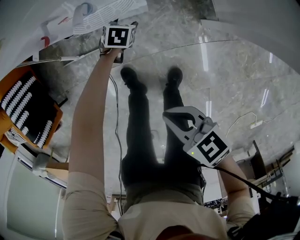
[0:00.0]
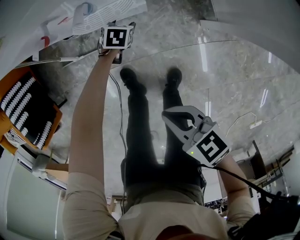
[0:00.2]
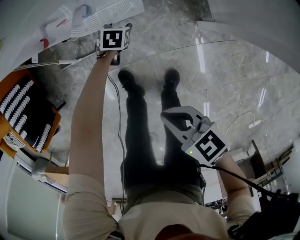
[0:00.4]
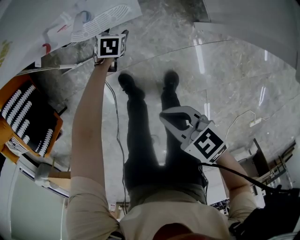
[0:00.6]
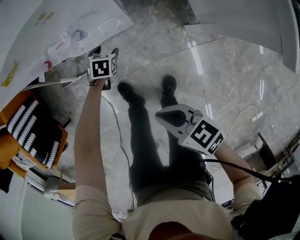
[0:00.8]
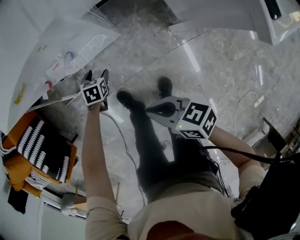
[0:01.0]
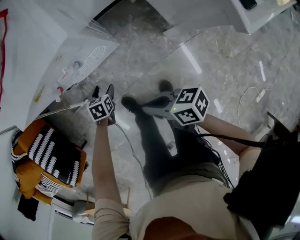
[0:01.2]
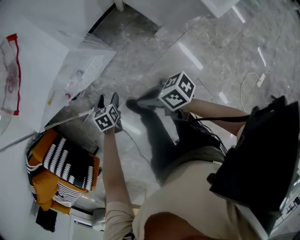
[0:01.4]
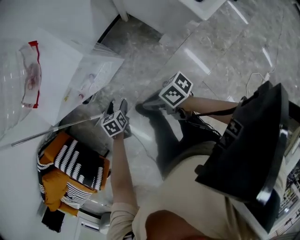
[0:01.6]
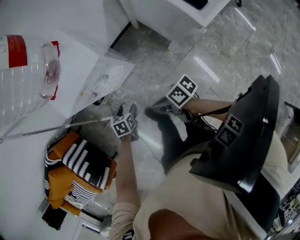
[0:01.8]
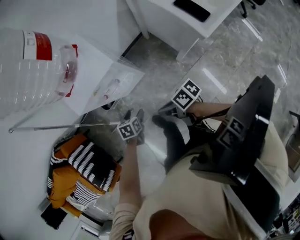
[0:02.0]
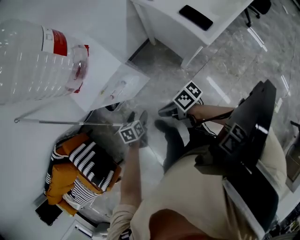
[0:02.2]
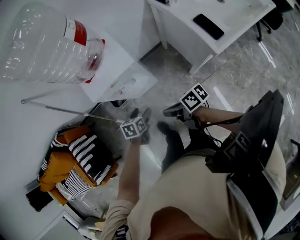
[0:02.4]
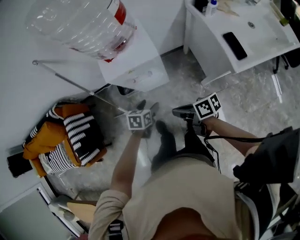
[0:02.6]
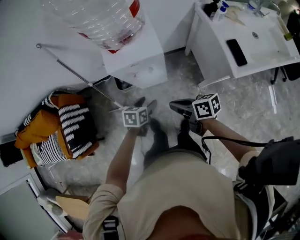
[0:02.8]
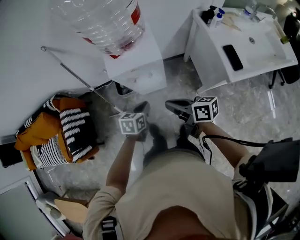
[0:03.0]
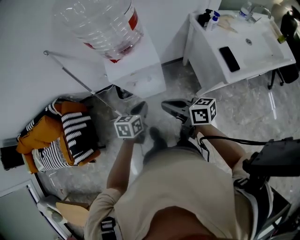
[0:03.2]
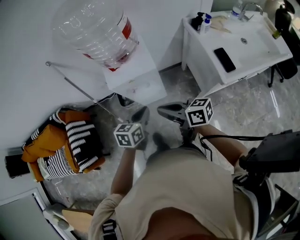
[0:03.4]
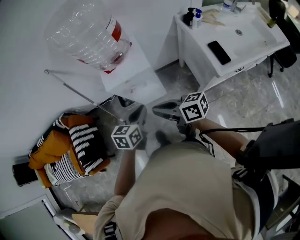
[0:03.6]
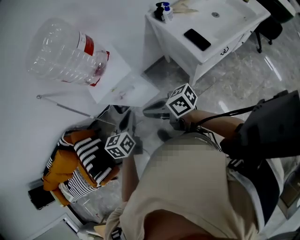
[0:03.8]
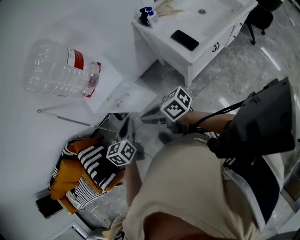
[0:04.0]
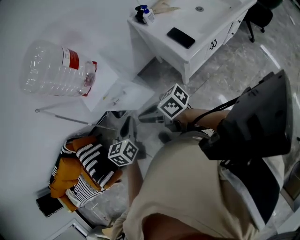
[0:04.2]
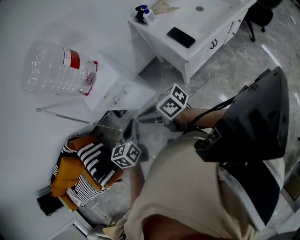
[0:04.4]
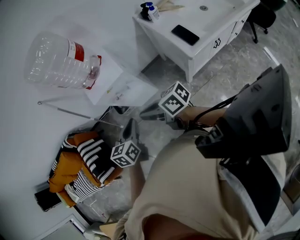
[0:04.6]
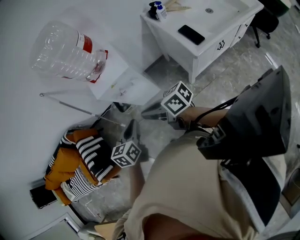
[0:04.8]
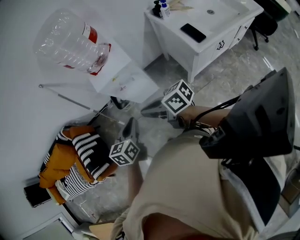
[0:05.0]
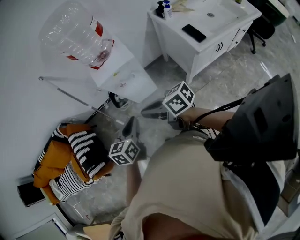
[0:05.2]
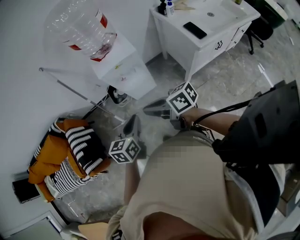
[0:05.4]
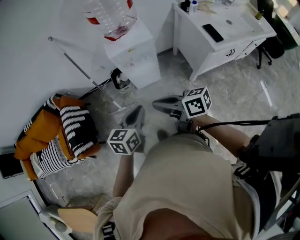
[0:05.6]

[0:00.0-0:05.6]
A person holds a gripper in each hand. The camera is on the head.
0:00.0 to 0:01.4: The left gripper goes some 20 cm upward, backward and to the left; the right gripper travels forward and upward by roughly 10 cm, and changes its angle by about 30 degrees.
0:01.4 to 0:02.8: The two grippers go about 25 cm upward.
0:02.8 to 0:04.2: The right gripper goes approximately 10 cm upward and backward, and turns by about 20 degrees. Meanwhile the left gripper shifts some 20 cm upward, backward and to the right, changes its angle by about 20 degrees, and closes.
0:04.2 to 0:05.6: Both grippers travel together to the left and backward, some 20 cm.

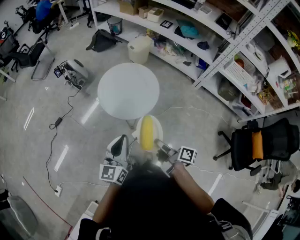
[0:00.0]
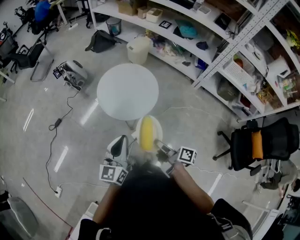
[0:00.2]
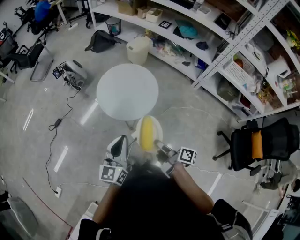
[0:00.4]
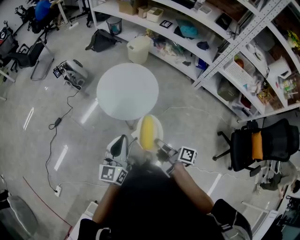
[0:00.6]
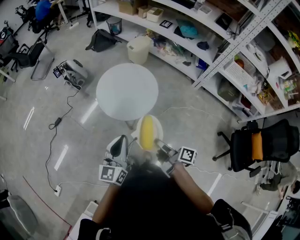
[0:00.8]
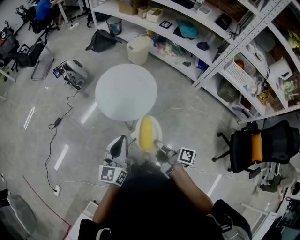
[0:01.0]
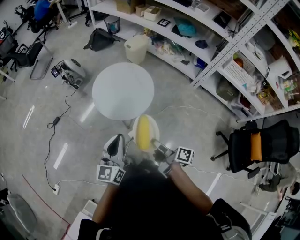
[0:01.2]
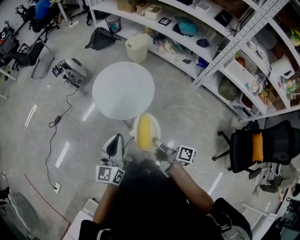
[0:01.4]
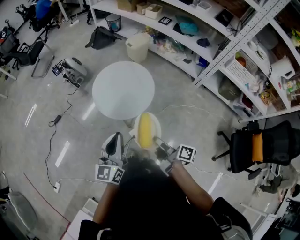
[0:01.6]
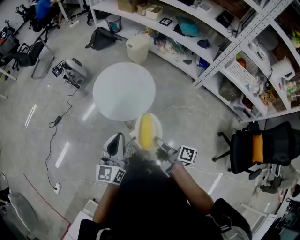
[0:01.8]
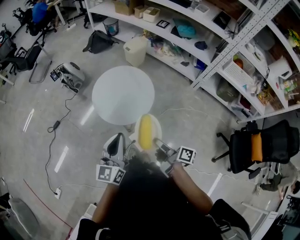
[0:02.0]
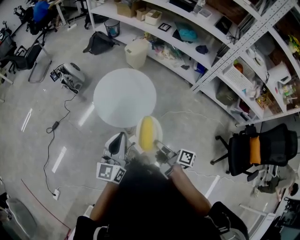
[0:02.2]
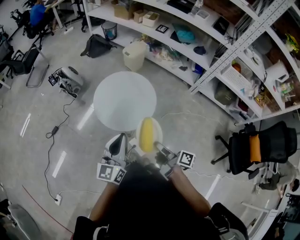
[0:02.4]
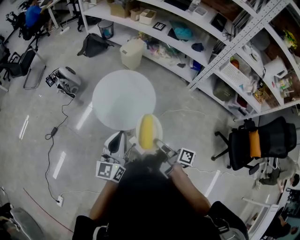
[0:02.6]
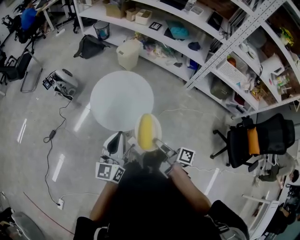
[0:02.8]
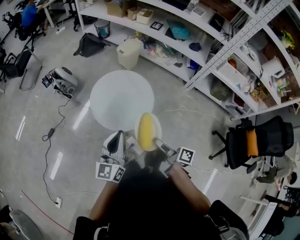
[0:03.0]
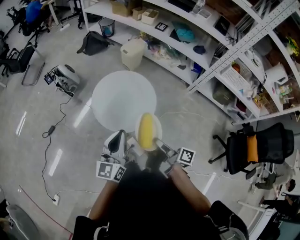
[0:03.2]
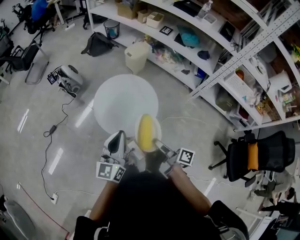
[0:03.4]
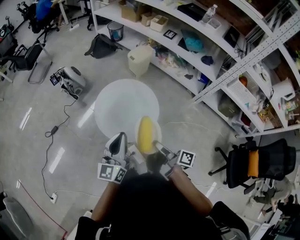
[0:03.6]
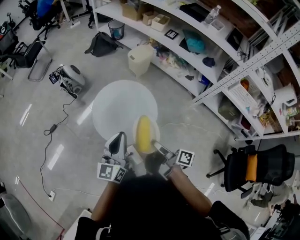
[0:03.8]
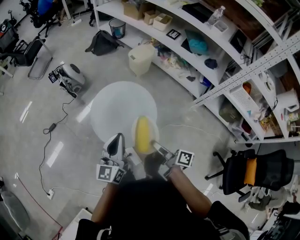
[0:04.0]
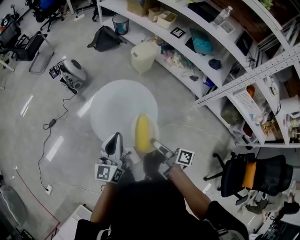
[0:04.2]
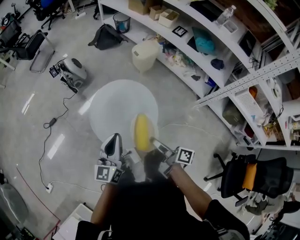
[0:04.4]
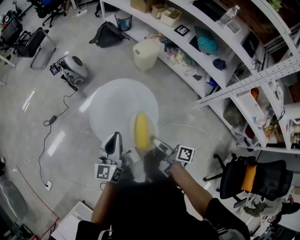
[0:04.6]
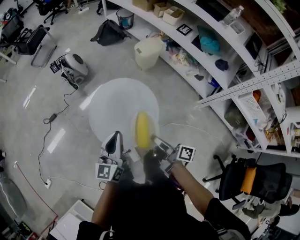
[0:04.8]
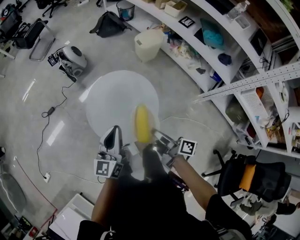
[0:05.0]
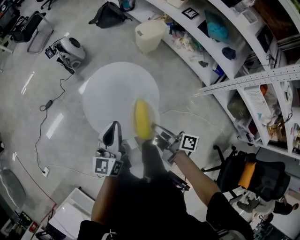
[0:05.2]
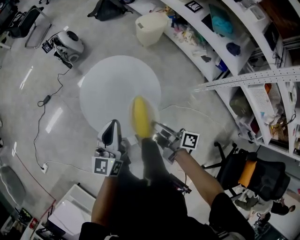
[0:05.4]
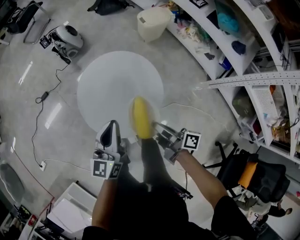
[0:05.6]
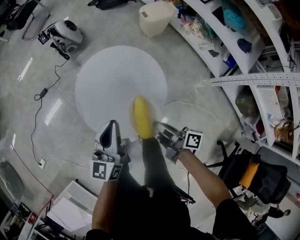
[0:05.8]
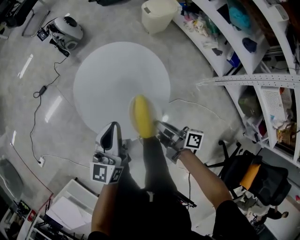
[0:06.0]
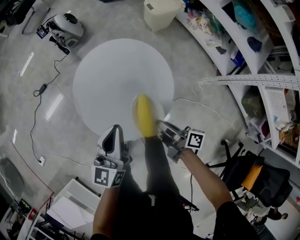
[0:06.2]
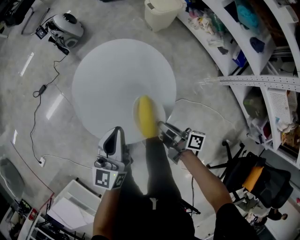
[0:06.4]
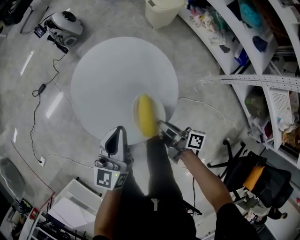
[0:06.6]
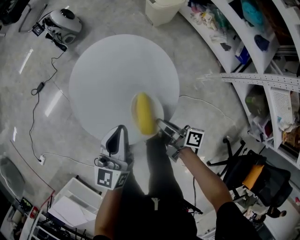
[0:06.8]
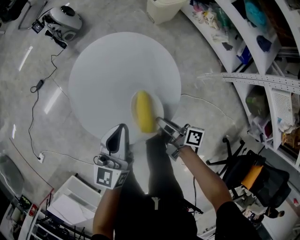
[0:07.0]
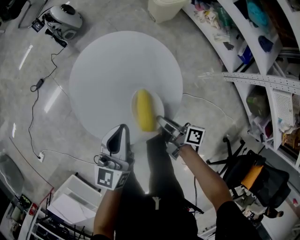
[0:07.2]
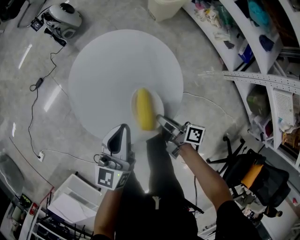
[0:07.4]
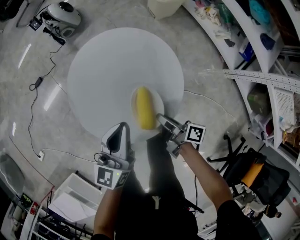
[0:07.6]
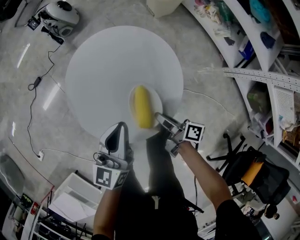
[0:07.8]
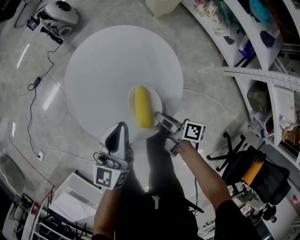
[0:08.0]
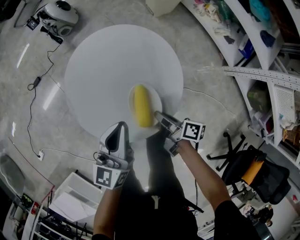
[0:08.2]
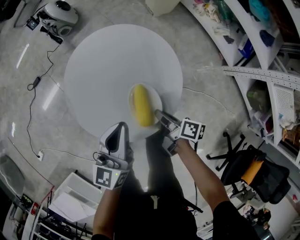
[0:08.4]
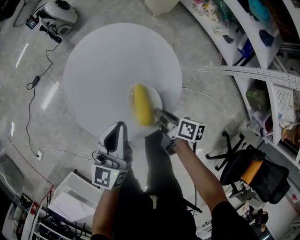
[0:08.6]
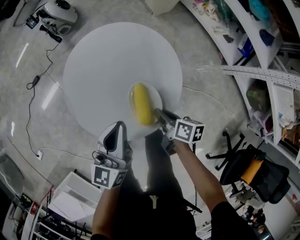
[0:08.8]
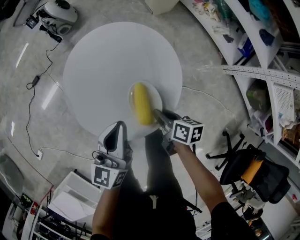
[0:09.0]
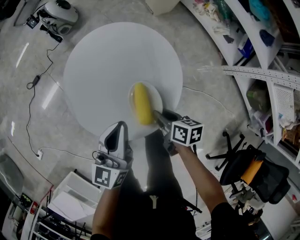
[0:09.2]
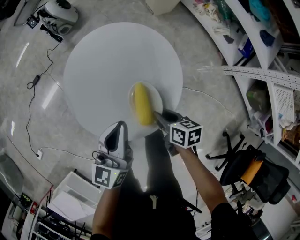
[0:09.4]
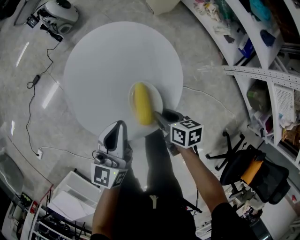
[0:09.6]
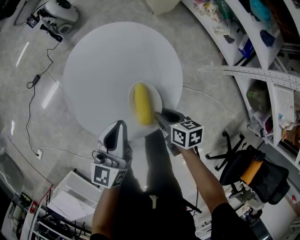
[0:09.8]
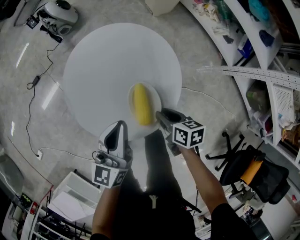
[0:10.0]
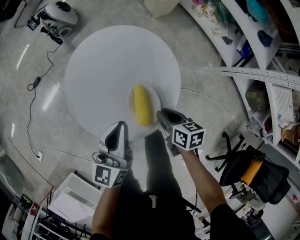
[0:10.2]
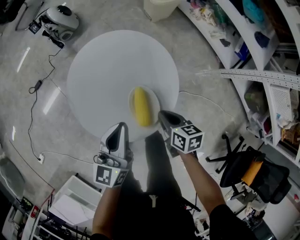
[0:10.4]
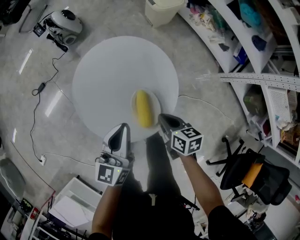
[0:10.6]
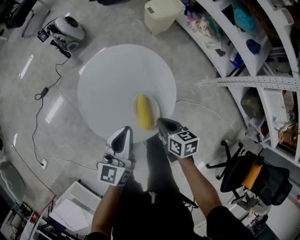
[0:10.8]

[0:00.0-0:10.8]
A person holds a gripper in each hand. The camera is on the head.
0:01.6 to 0:03.0: The left gripper shifts by some 10 cm.
0:03.0 to 0:04.6: The left gripper ends up about 15 cm from where it was.
0:04.6 to 0:06.2: The left gripper heads downward, covering about 15 cm.
0:06.2 to 0:07.8: The left gripper changes place by roughly 5 cm.

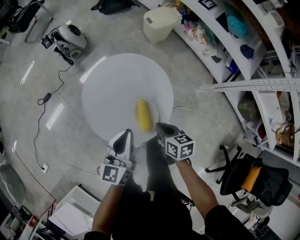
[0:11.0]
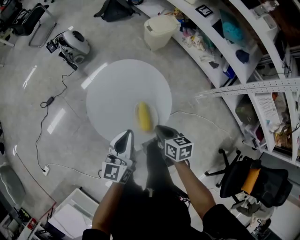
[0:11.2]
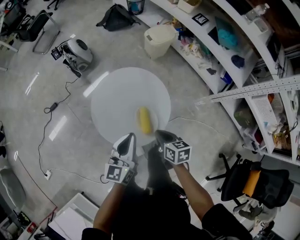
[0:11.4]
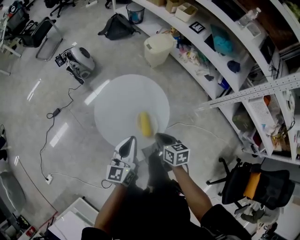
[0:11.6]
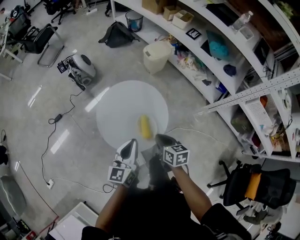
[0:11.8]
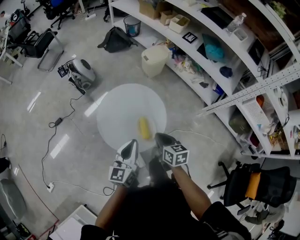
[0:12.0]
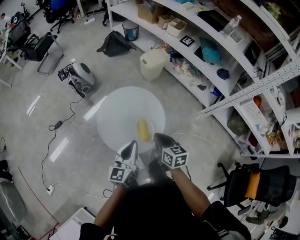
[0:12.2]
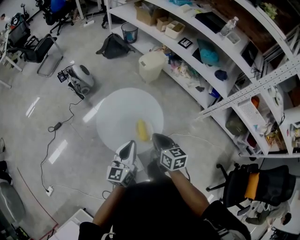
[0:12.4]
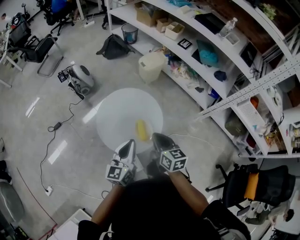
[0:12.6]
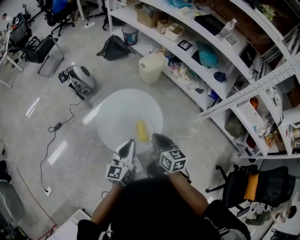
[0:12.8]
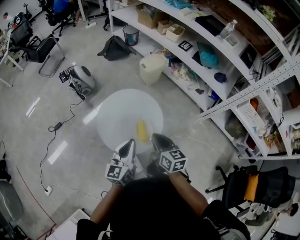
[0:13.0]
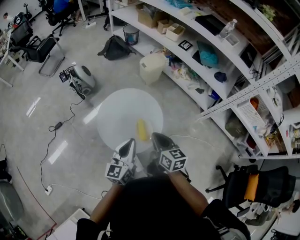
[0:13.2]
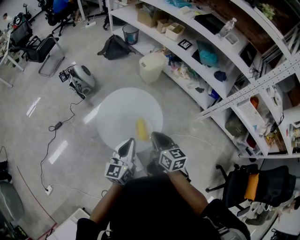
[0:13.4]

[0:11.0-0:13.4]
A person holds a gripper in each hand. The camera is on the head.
0:11.0 to 0:12.2: The left gripper travels upward by some 10 cm.

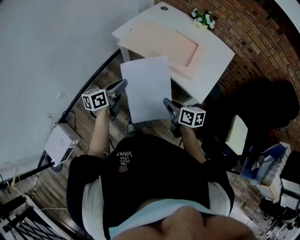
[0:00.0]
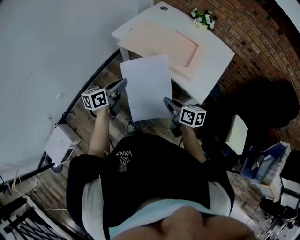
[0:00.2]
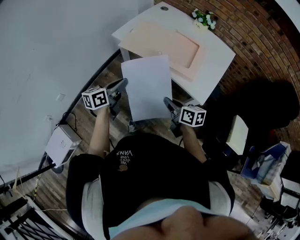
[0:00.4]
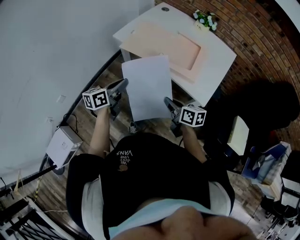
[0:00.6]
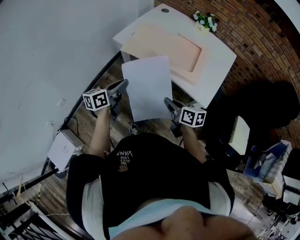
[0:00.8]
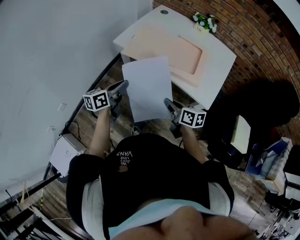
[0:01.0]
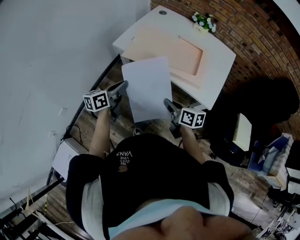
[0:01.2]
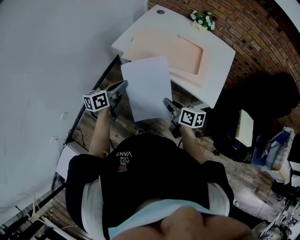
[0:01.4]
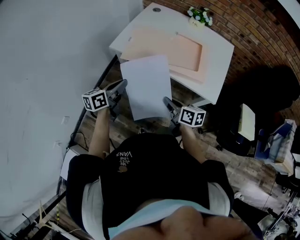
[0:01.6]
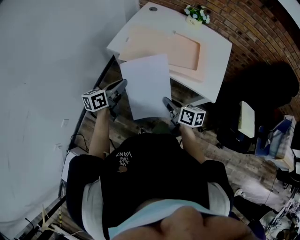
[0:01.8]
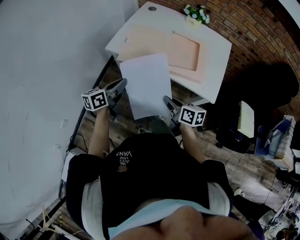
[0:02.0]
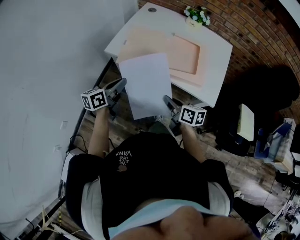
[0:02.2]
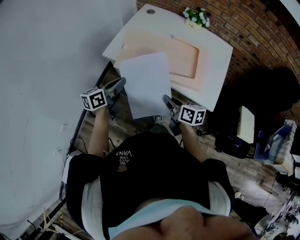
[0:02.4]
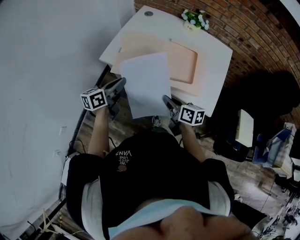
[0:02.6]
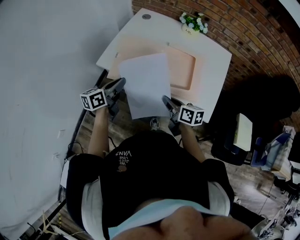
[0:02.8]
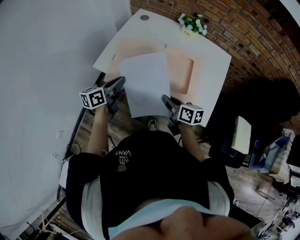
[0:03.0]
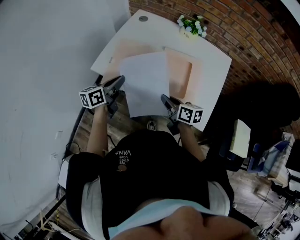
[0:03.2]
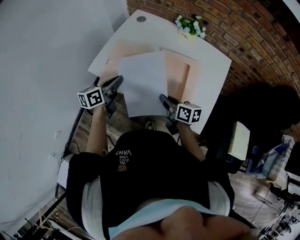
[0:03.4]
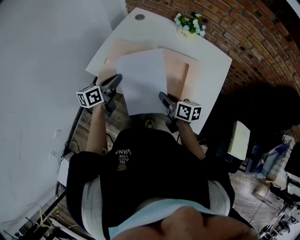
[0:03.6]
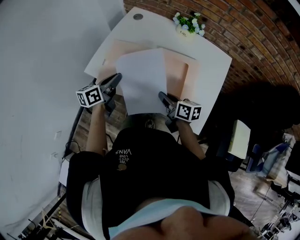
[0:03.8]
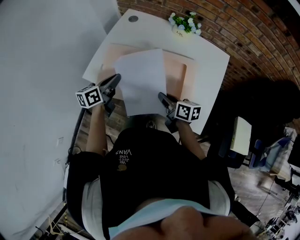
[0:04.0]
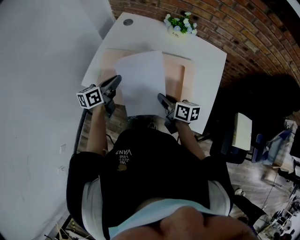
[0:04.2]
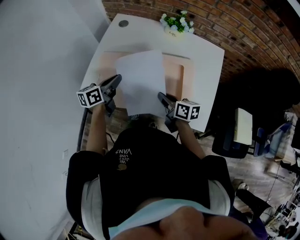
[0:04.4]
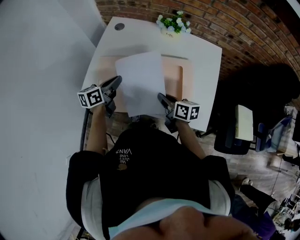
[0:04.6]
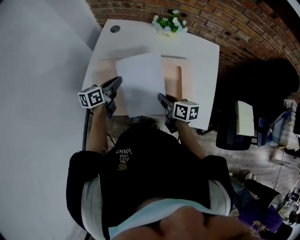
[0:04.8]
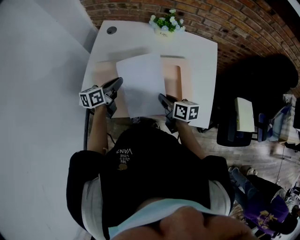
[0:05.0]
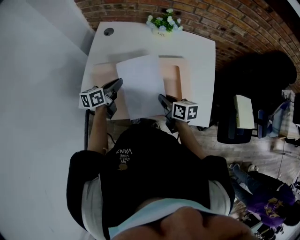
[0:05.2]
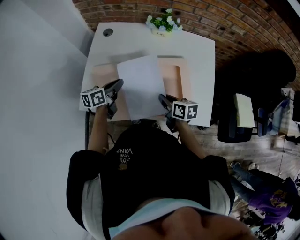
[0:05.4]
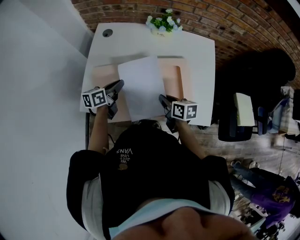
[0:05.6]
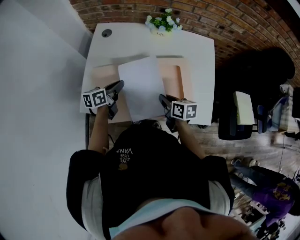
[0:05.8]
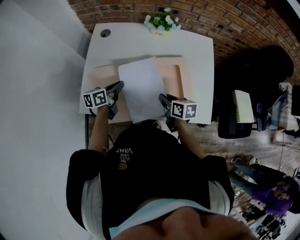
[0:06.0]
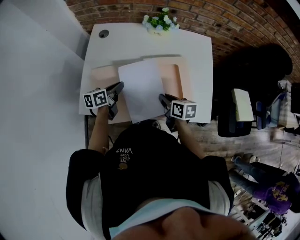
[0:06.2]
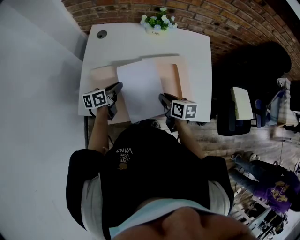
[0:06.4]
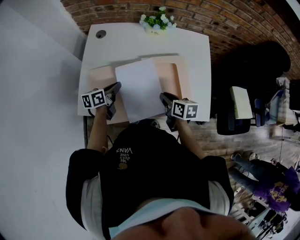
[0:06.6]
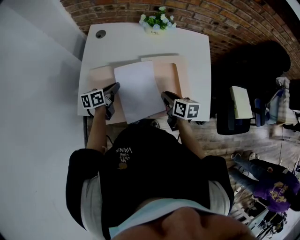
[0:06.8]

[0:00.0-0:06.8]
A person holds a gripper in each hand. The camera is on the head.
0:00.0 to 0:01.4: The left gripper is displaced forward and to the left by about 10 cm. The right gripper shifts some 10 cm to the left and forward.
0:01.4 to 0:02.8: The grippers both shift forward by about 15 cm.
0:02.8 to 0:04.0: The right gripper heads forward, covering approximately 10 cm. Meanwhile the left gripper goes some 10 cm forward and to the right.
0:04.0 to 0:05.4: The right gripper ends up roughly 5 cm from where it was. Meanwhile the left gripper moves forward and downward, roughly 10 cm, and rotates roughly 20 degrees.
0:05.4 to 0:06.8: There are only small adjustments of the grippers.
